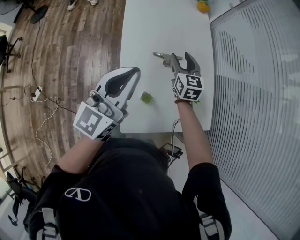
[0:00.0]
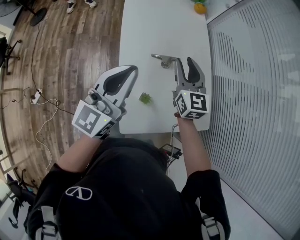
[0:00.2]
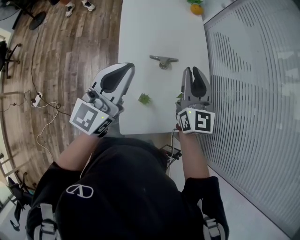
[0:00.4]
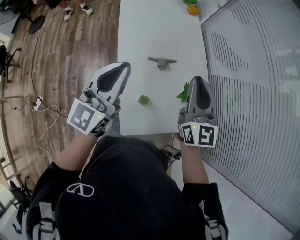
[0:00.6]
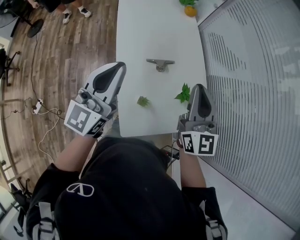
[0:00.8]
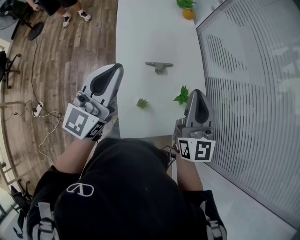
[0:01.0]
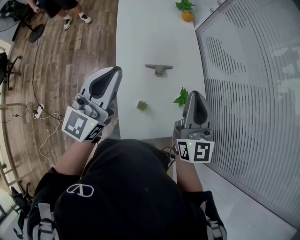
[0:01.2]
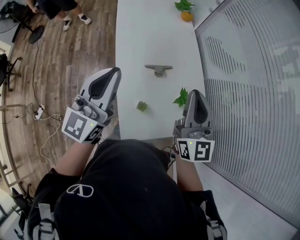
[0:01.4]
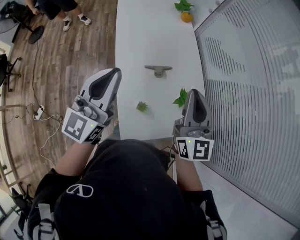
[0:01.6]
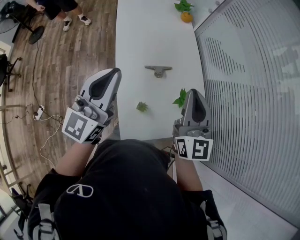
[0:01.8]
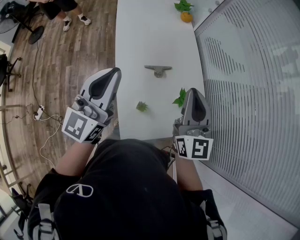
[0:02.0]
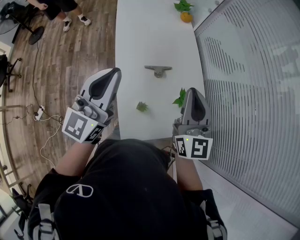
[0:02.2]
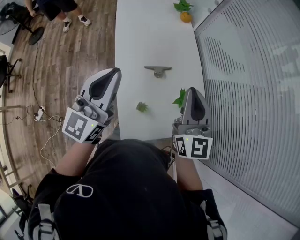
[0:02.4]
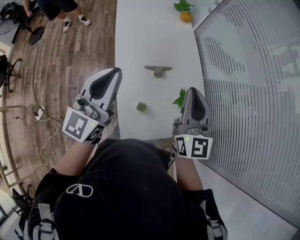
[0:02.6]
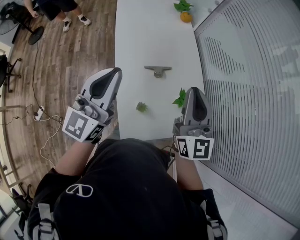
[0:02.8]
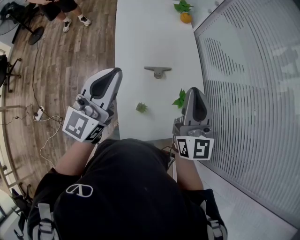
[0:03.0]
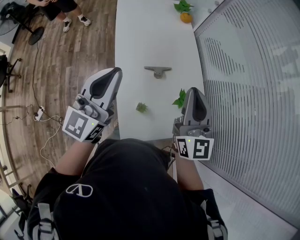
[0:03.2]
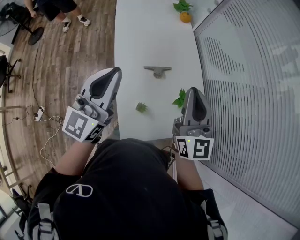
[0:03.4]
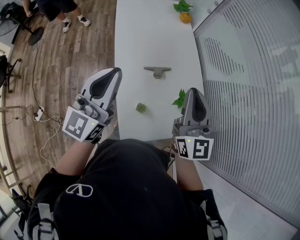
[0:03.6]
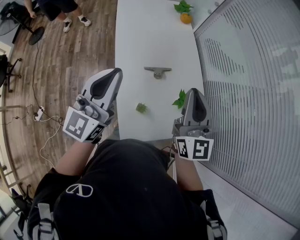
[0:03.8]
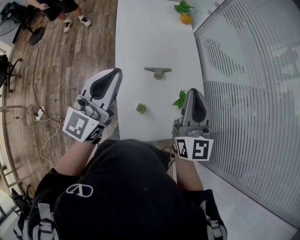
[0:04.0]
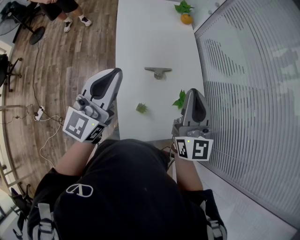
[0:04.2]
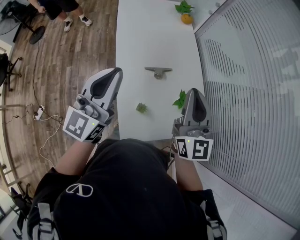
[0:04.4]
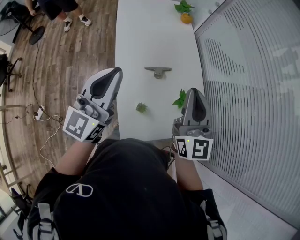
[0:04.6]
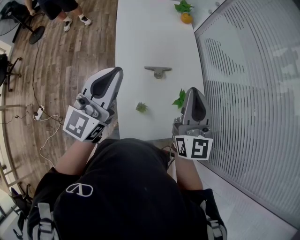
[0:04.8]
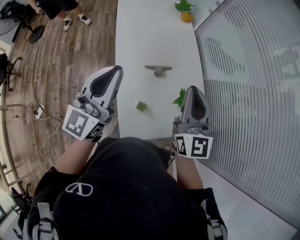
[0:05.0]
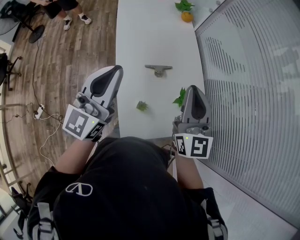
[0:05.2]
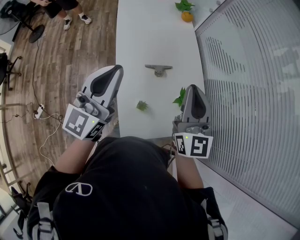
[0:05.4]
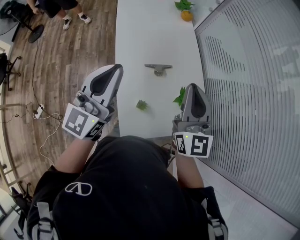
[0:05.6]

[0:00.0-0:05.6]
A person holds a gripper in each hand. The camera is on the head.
0:00.0 to 0:01.4: The right gripper moves upward and backward, approximately 30 cm, points its fingers some 30 degrees further upward, and closes its fingers. The left gripper travels upward by about 5 cm.
0:01.4 to 0:04.2: Both grippers stay about where they are.
0:04.2 to 0:05.6: Neither gripper changes place.

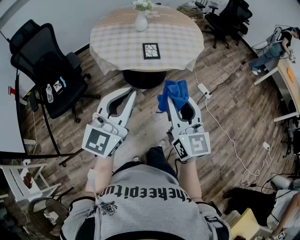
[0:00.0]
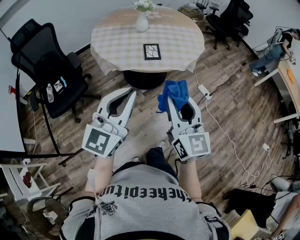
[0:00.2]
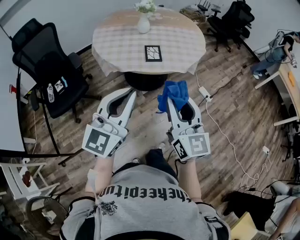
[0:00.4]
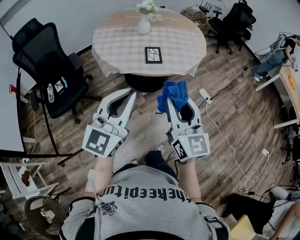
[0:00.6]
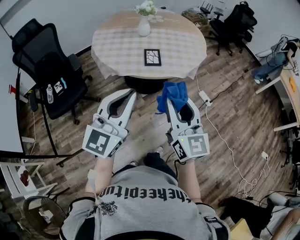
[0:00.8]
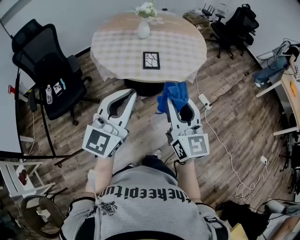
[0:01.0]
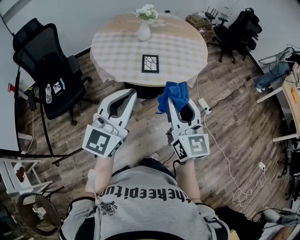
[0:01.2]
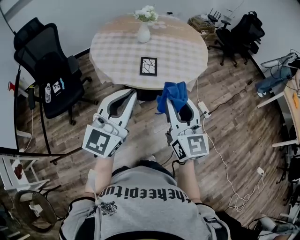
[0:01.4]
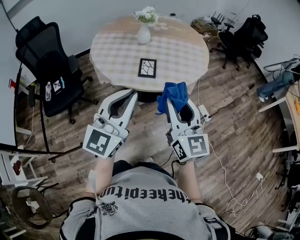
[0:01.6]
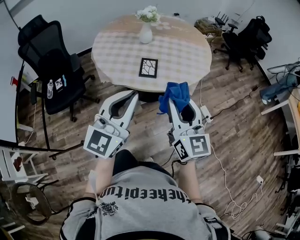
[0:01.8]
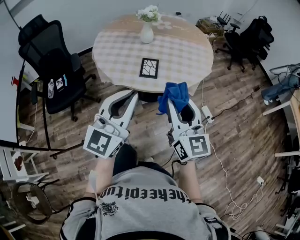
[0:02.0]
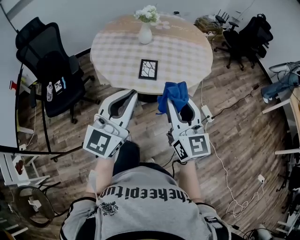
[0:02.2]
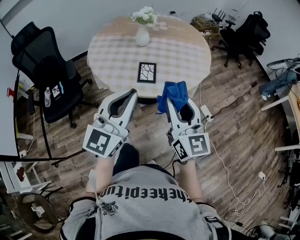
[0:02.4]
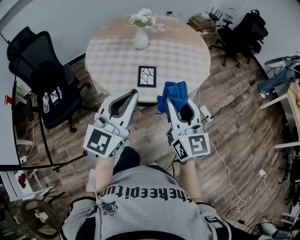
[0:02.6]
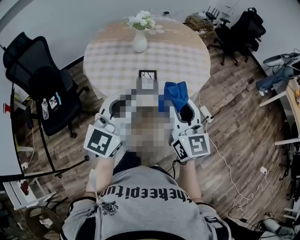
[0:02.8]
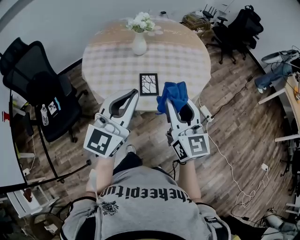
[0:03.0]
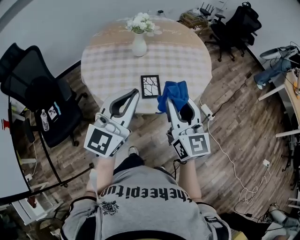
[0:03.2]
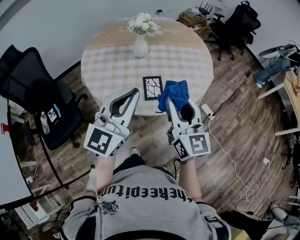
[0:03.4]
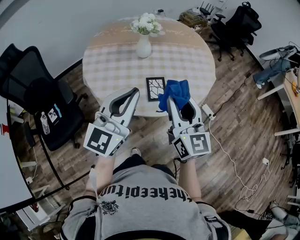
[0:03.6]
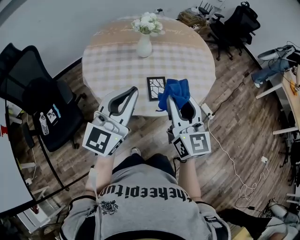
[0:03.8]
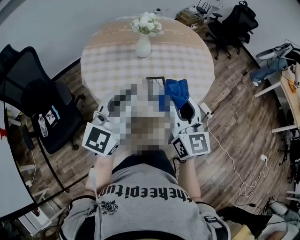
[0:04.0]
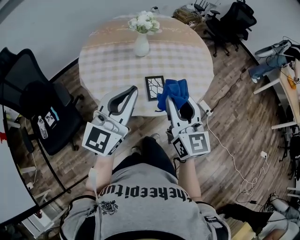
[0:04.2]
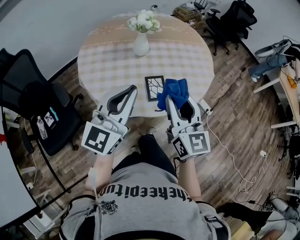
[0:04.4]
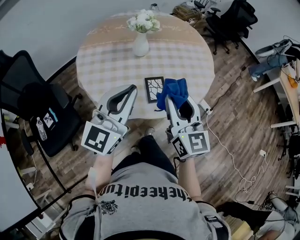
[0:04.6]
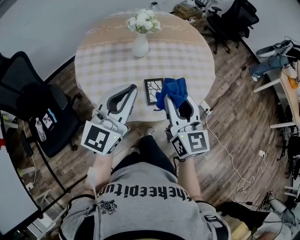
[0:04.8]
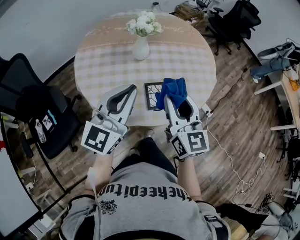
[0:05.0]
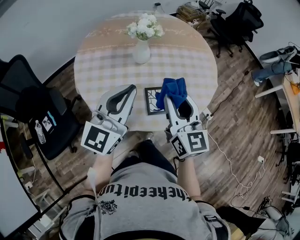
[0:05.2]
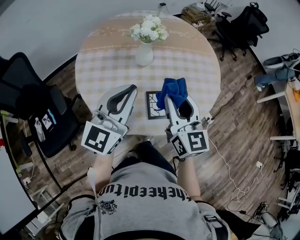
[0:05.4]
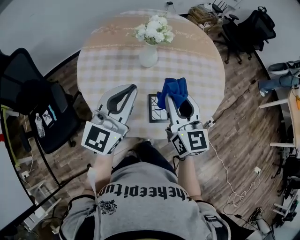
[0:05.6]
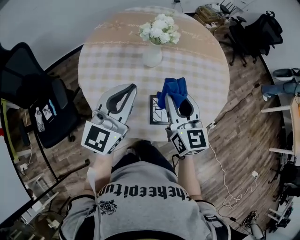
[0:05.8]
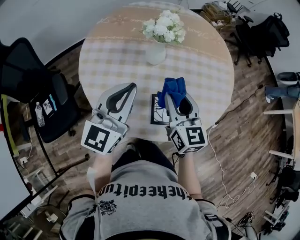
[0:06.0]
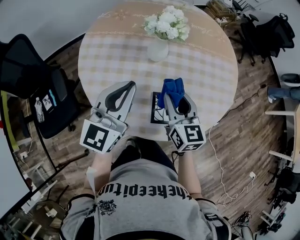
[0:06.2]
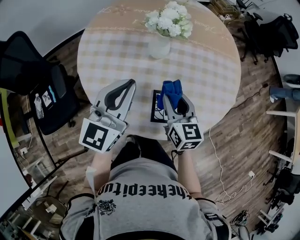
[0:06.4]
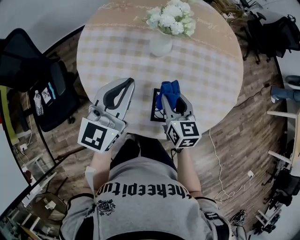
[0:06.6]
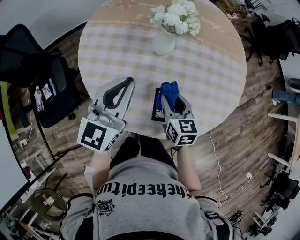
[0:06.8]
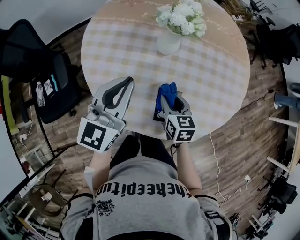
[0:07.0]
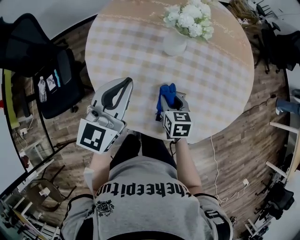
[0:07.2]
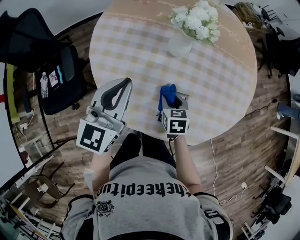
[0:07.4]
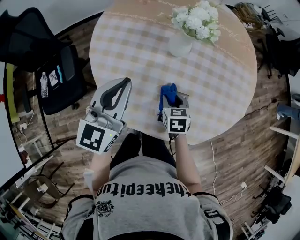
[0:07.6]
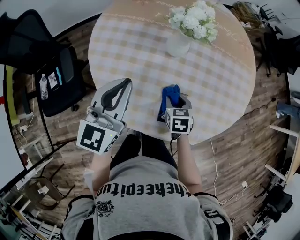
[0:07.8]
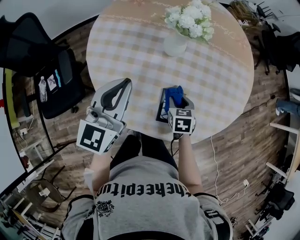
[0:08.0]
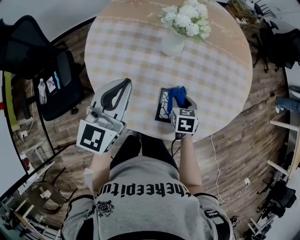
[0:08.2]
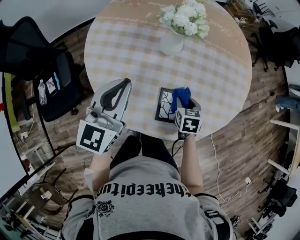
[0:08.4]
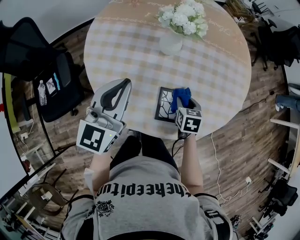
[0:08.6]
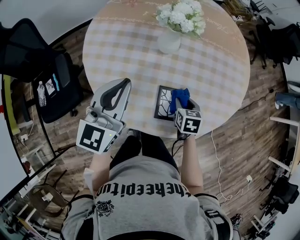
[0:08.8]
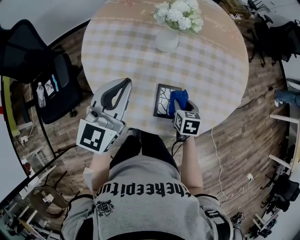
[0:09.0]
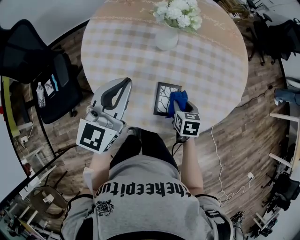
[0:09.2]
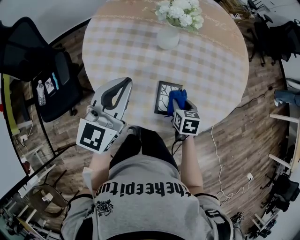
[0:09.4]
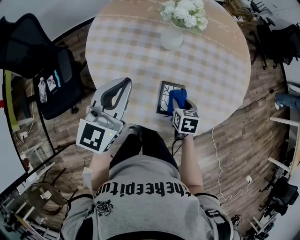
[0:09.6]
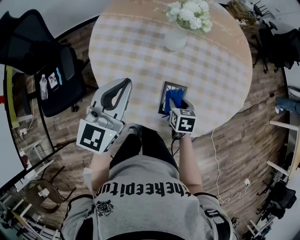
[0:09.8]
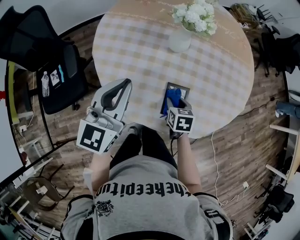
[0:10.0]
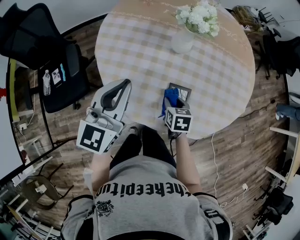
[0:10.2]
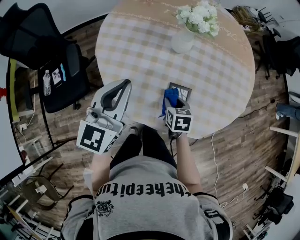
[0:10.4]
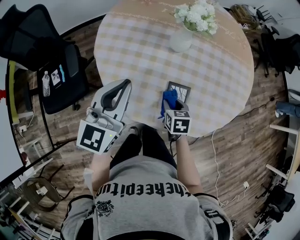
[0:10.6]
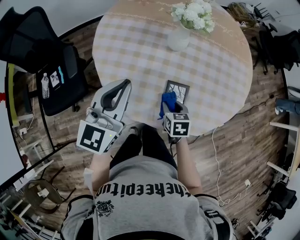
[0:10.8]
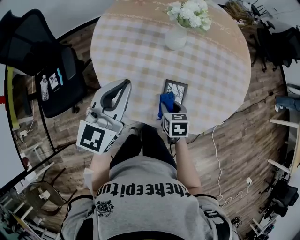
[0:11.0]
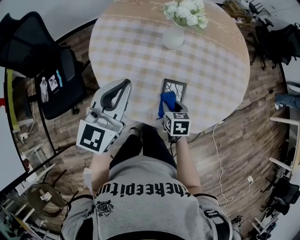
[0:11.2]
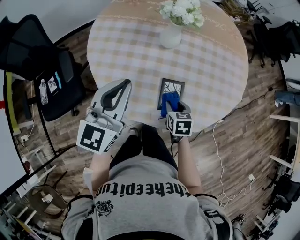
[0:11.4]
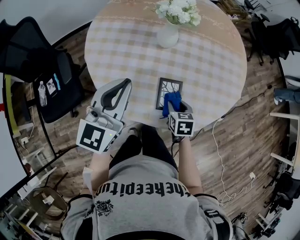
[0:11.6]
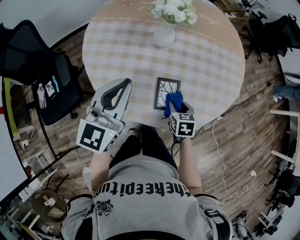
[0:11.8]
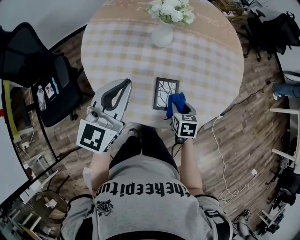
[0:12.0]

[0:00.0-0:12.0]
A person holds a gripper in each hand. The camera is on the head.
0:00.0 to 0:01.6: Both grippers travel together forward and to the right, about 15 cm.
0:01.6 to 0:03.0: Both grippers move forward and to the left, about 15 cm.
0:03.0 to 0:04.4: Both grippers move to the left and forward, approximately 10 cm.
0:04.4 to 0:06.0: The right gripper moves forward and downward, about 20 cm. The left gripper goes about 15 cm forward.
0:06.0 to 0:07.6: The right gripper travels downward by about 25 cm, and tilts its fingers approximately 40 degrees downward. Meanwhile the left gripper shifts approximately 10 cm downward and to the left.
0:07.6 to 0:09.0: The right gripper heads to the right, covering approximately 10 cm.
0:09.0 to 0:10.4: The right gripper is displaced to the left by roughly 10 cm. Meanwhile the left gripper shifts by some 5 cm.
0:10.4 to 0:12.0: The left gripper moves to the right, roughly 5 cm, while the right gripper goes about 10 cm to the right.

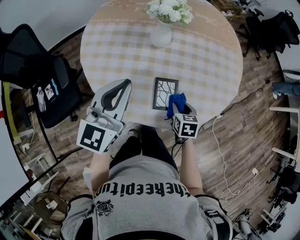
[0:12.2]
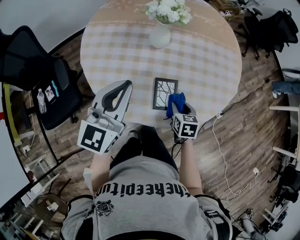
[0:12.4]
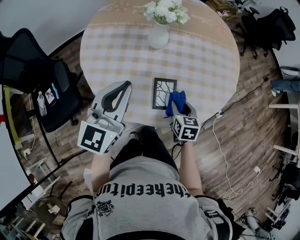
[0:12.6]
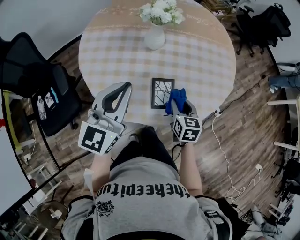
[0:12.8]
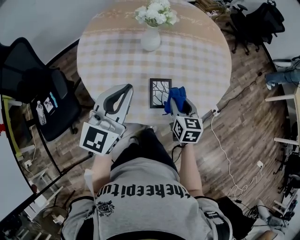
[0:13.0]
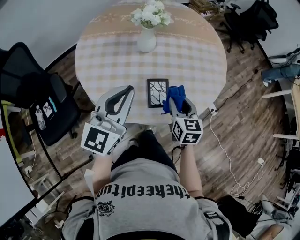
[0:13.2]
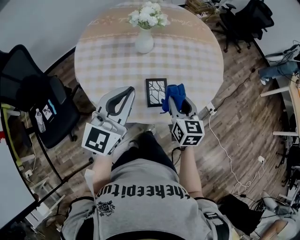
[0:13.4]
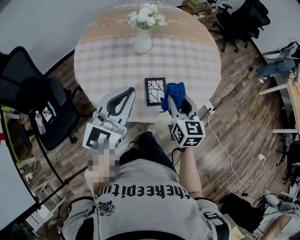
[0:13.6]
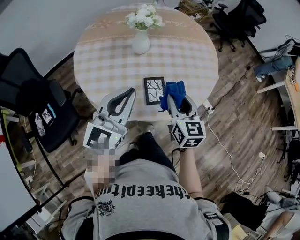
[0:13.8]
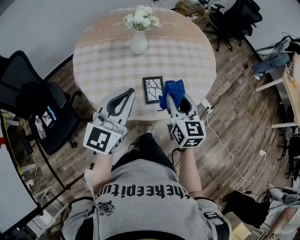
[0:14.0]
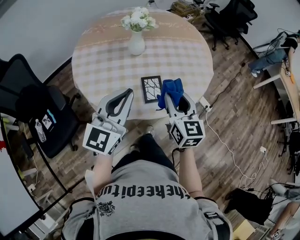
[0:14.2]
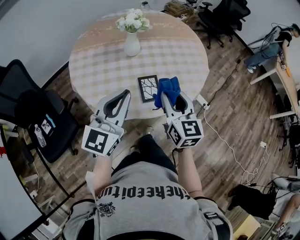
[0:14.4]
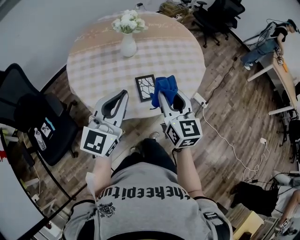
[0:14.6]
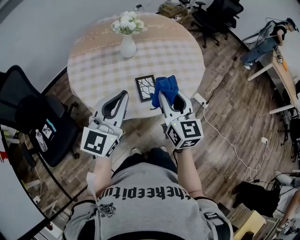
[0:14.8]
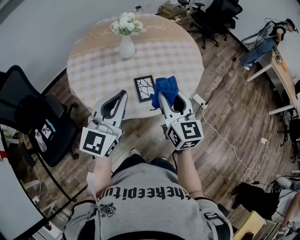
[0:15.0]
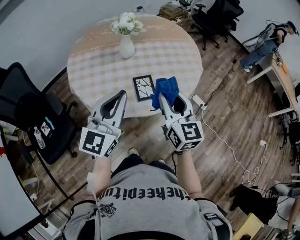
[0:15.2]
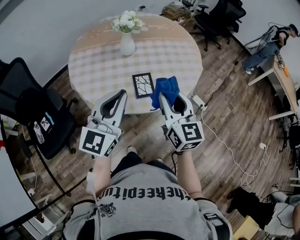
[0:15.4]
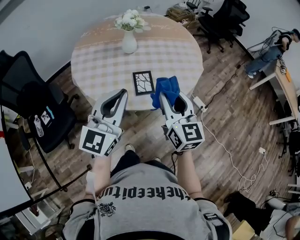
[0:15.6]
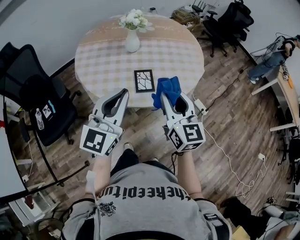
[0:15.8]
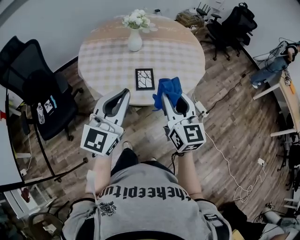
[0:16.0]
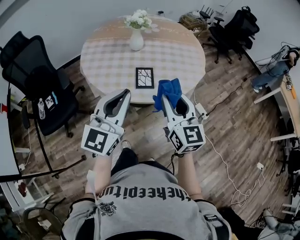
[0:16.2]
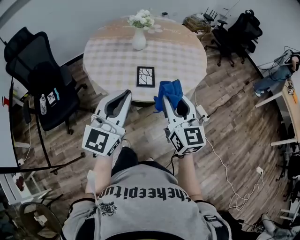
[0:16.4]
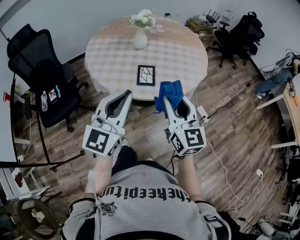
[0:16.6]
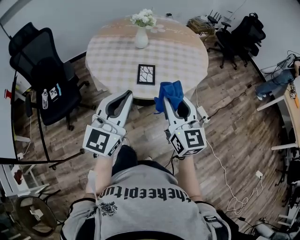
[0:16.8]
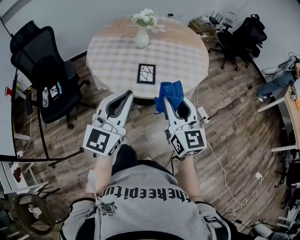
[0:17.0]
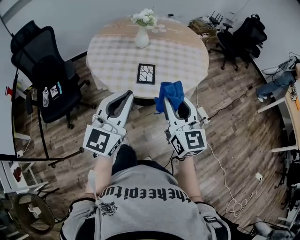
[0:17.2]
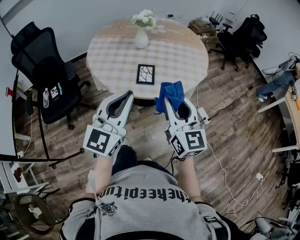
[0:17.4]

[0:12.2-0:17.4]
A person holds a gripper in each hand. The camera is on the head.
0:12.2 to 0:14.0: The right gripper moves upward, roughly 20 cm, and tips its fingers upward by some 40 degrees. Meanwhile the left gripper travels backward by about 10 cm.
0:14.0 to 0:15.6: The left gripper heads backward, covering some 10 cm; the right gripper moves backward and upward, some 10 cm.
0:15.6 to 0:17.4: Both grippers move backward and to the right, some 15 cm.

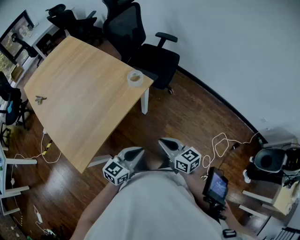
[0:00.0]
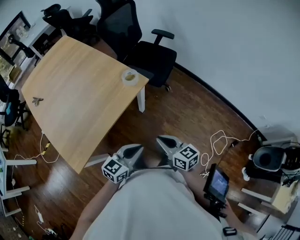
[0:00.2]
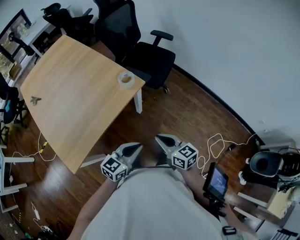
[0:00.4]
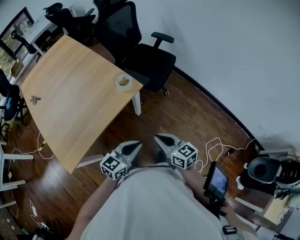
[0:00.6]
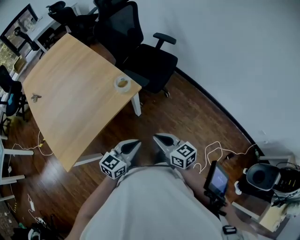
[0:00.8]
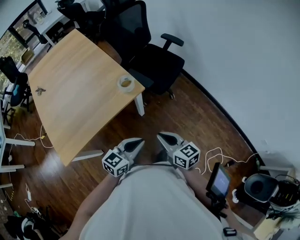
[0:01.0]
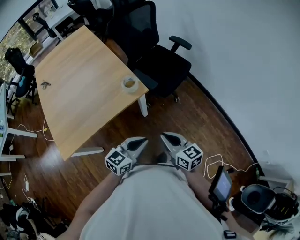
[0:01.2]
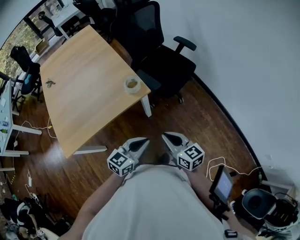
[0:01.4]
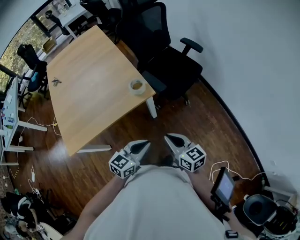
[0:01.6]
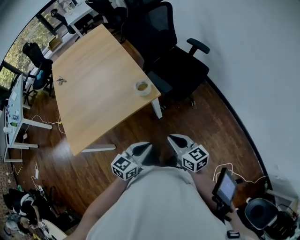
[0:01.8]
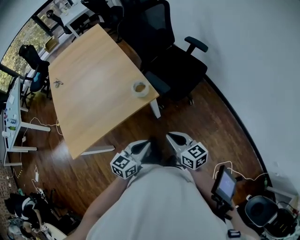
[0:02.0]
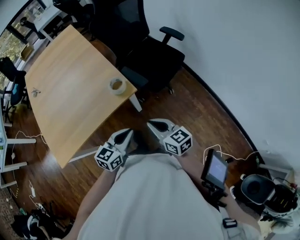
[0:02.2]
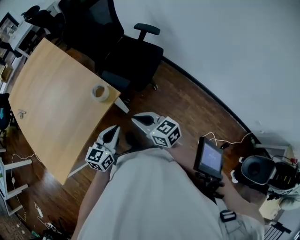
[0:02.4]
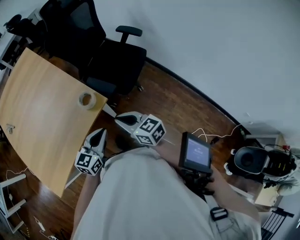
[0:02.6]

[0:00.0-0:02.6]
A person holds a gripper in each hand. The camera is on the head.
0:00.0 to 0:01.2: The two grippers go approximately 20 cm to the right and forward.
0:01.2 to 0:02.6: Both grippers move forward, about 15 cm.
